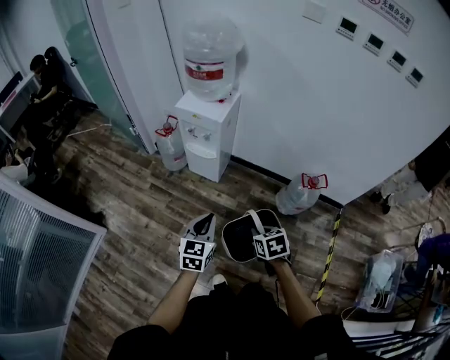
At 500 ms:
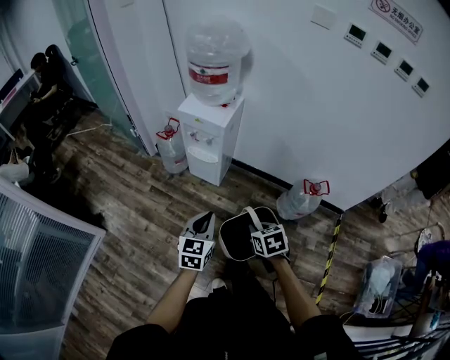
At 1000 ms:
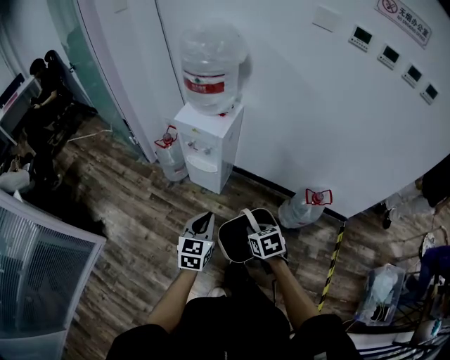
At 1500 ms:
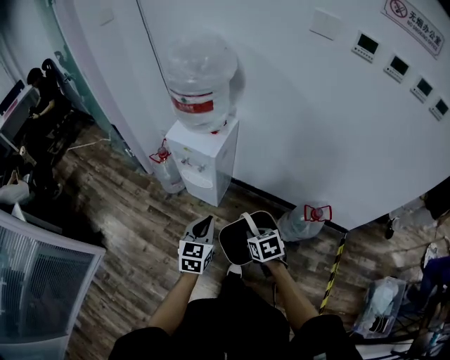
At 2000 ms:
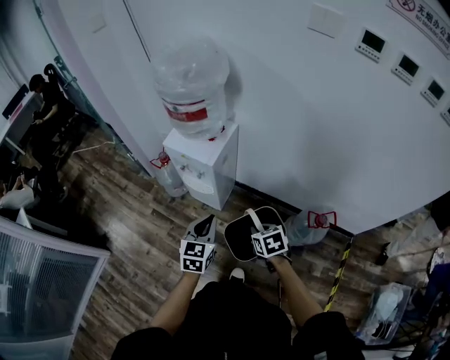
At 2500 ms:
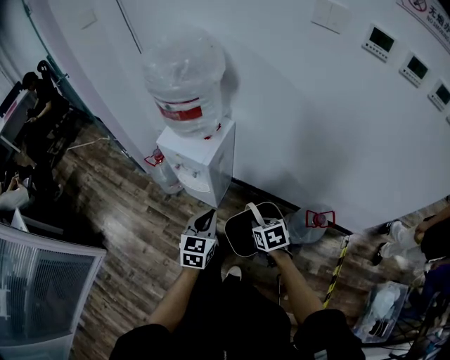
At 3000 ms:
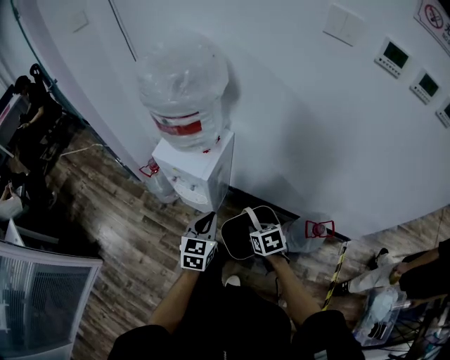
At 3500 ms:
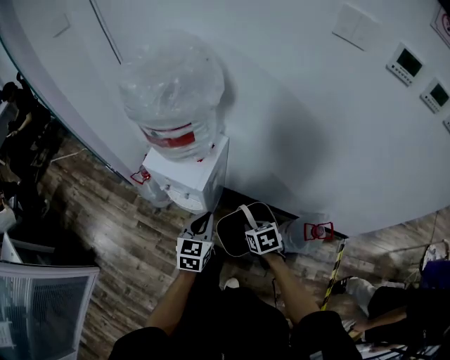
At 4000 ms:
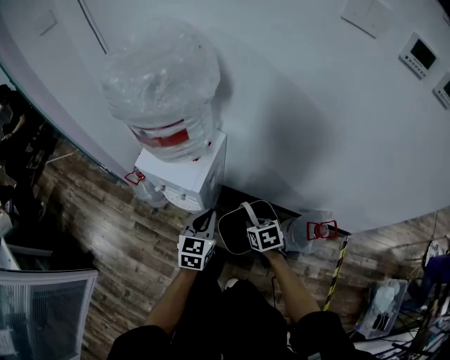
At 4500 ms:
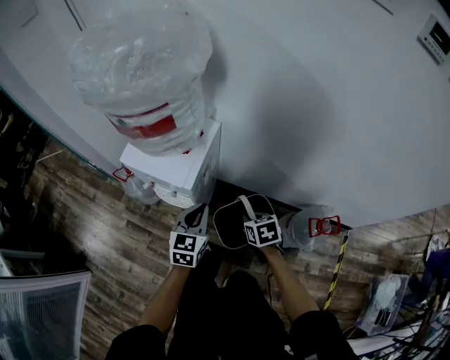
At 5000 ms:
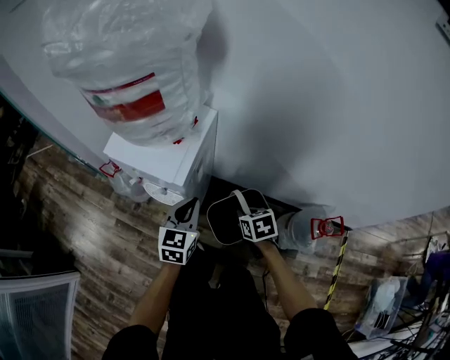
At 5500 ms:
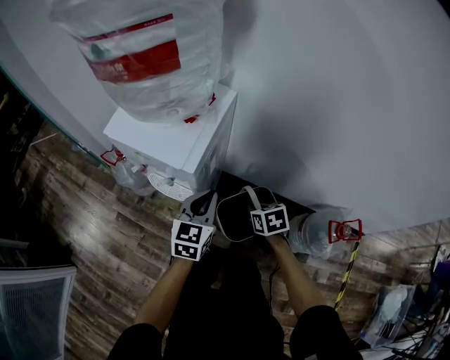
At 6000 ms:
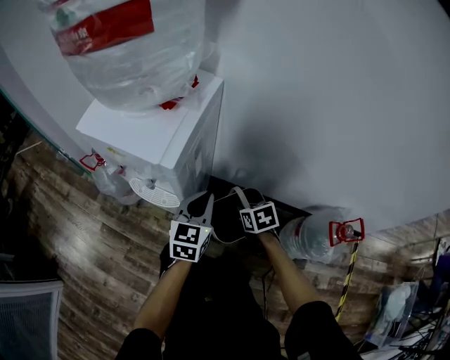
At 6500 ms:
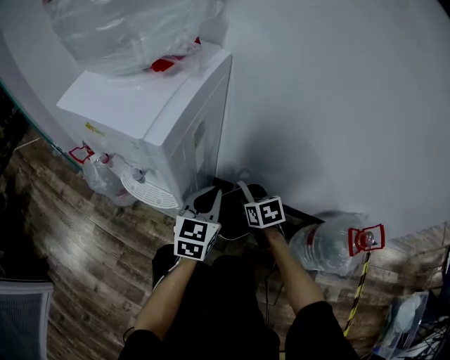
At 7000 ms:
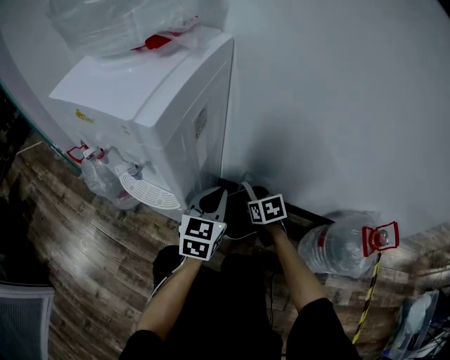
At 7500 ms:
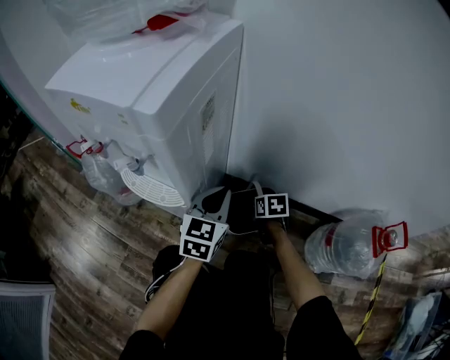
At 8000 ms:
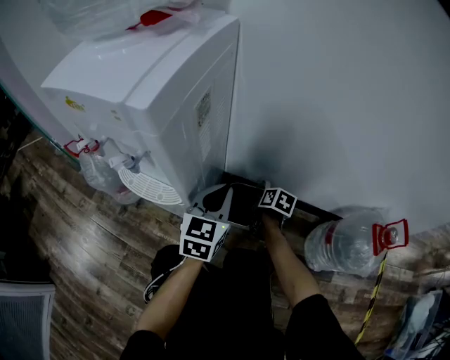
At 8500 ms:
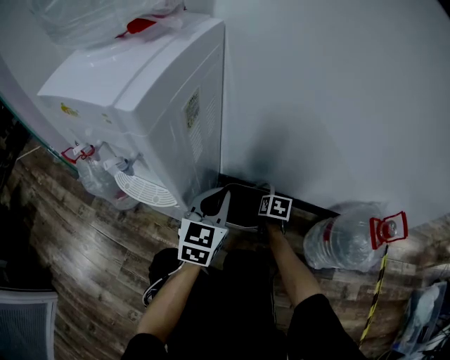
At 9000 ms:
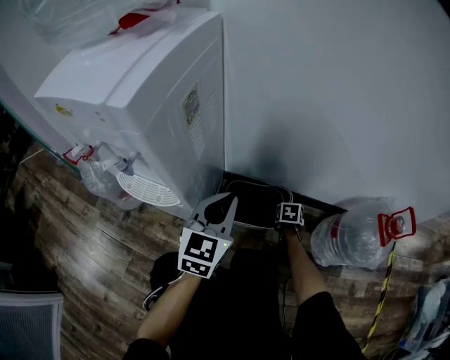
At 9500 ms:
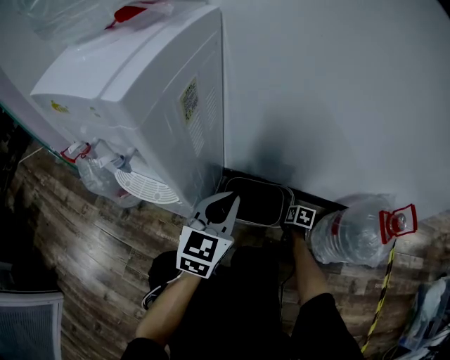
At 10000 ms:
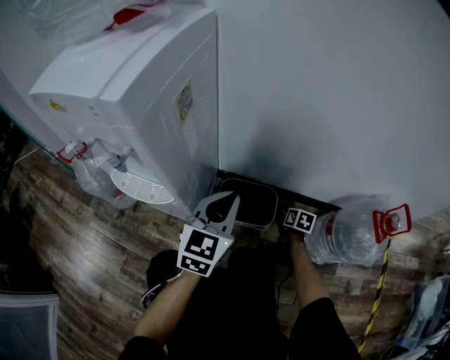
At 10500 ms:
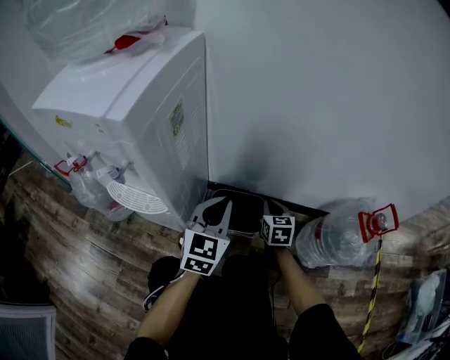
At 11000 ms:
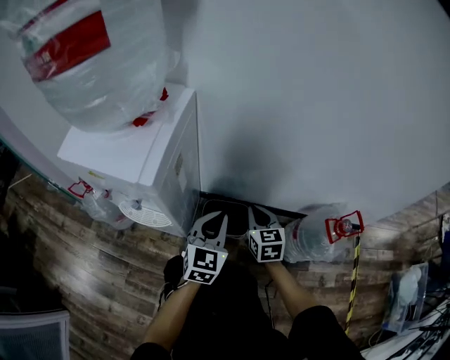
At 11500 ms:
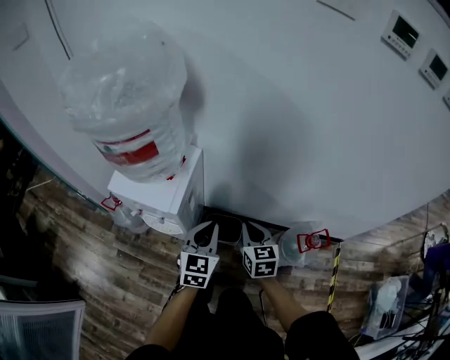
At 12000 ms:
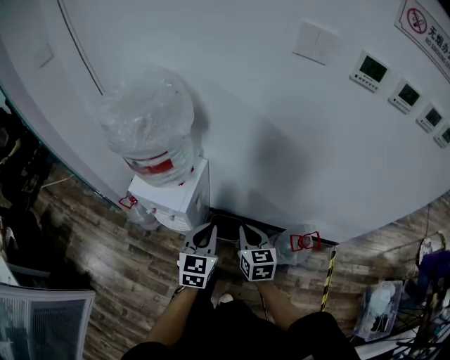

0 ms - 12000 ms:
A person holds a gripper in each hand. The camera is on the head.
0 ms - 2000 ms: The grippers both shift forward by approximately 25 cm.
2000 ms - 4000 ms: Both grippers travel together forward and downward, approximately 20 cm.
4000 ms - 6000 ms: The two grippers go approximately 25 cm downward.
6000 ms - 8000 ms: The right gripper heads downward, covering some 20 cm, and rotates around the line of its fingers by roughly 40 degrees, clockwise from behind. The left gripper moves downward, some 15 cm.
8000 ms - 10000 ms: The left gripper changes place by roughly 5 cm, while the right gripper shifts roughly 15 cm to the right and downward, and opens.
10000 ms - 12000 ms: The left gripper moves upward, about 50 cm; the right gripper travels upward by approximately 70 cm, rotates about 40 degrees, and closes.

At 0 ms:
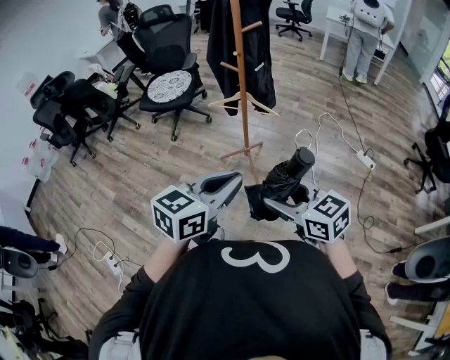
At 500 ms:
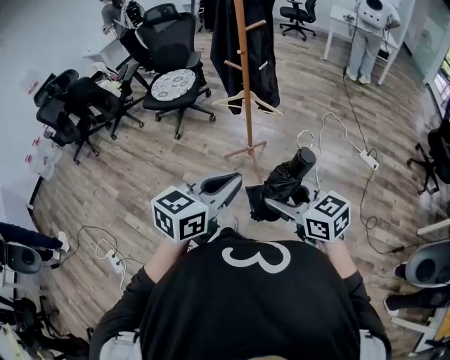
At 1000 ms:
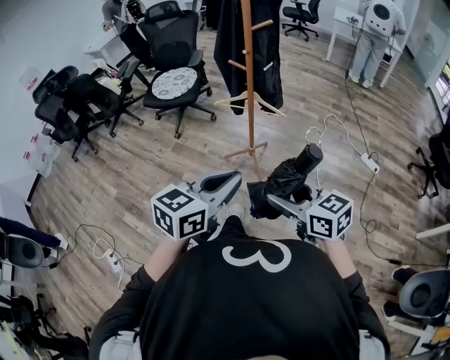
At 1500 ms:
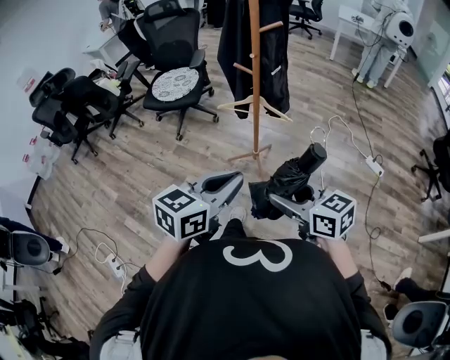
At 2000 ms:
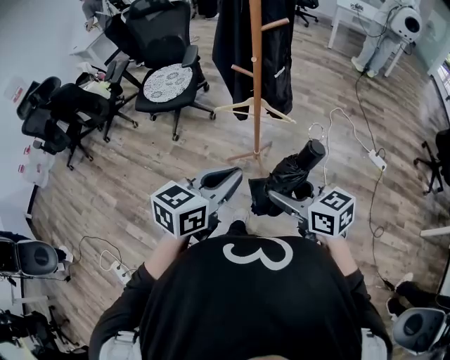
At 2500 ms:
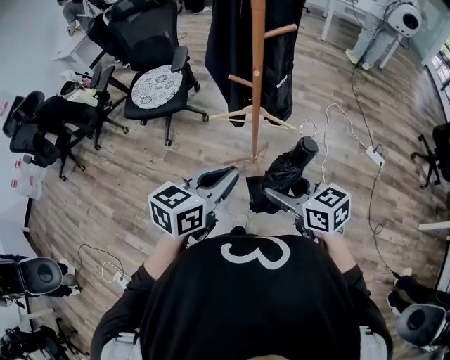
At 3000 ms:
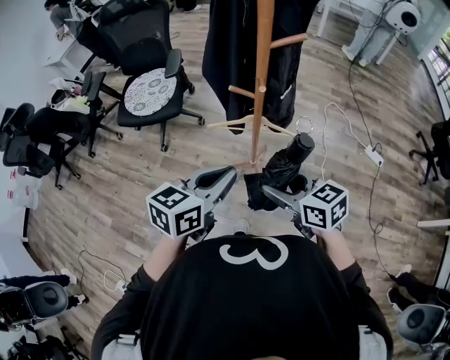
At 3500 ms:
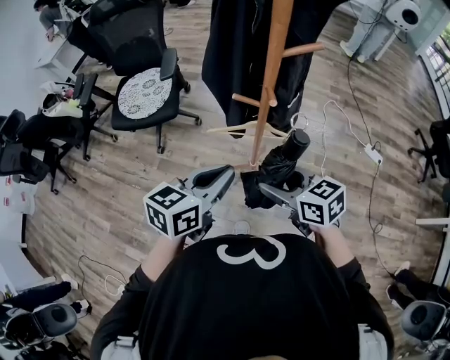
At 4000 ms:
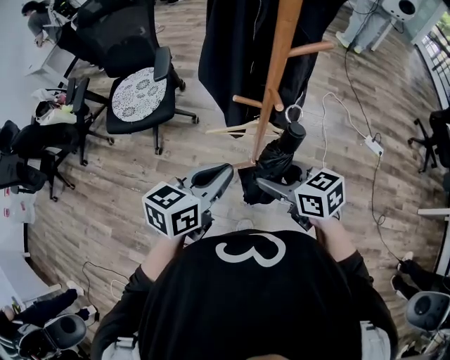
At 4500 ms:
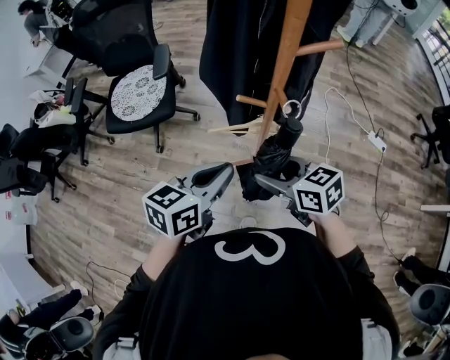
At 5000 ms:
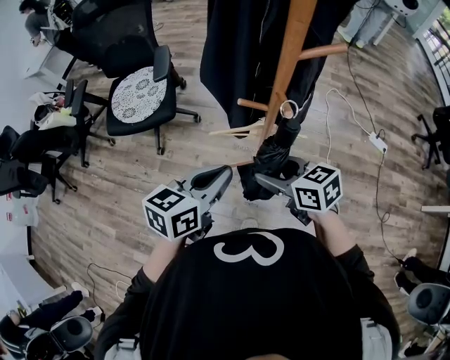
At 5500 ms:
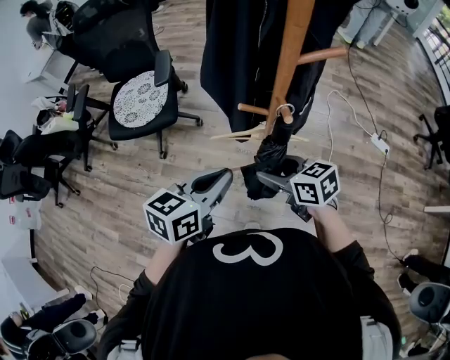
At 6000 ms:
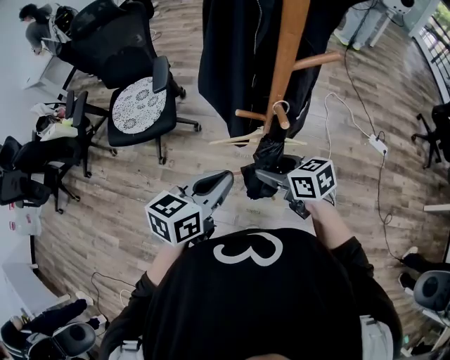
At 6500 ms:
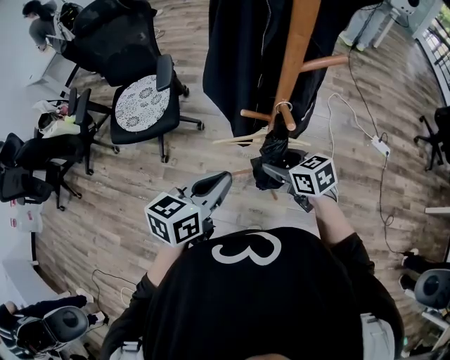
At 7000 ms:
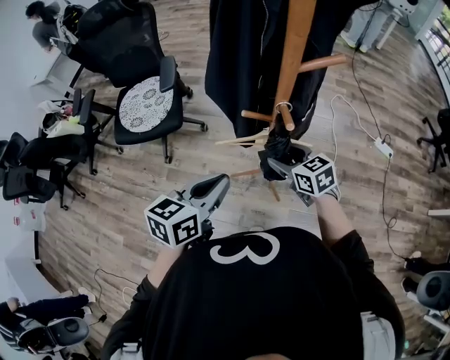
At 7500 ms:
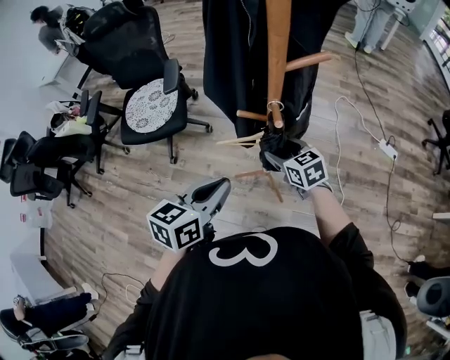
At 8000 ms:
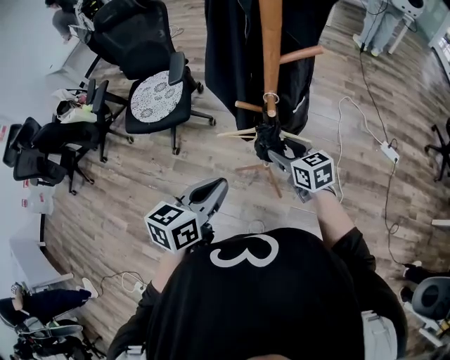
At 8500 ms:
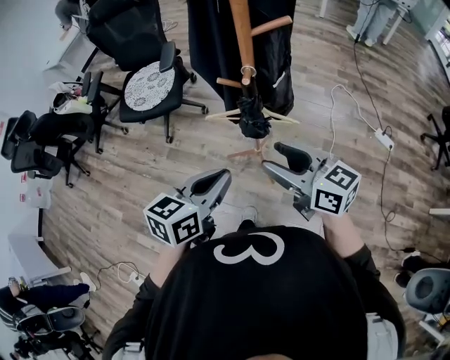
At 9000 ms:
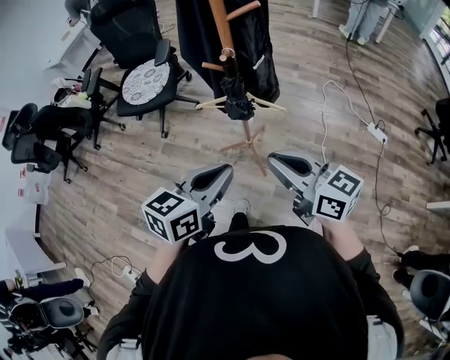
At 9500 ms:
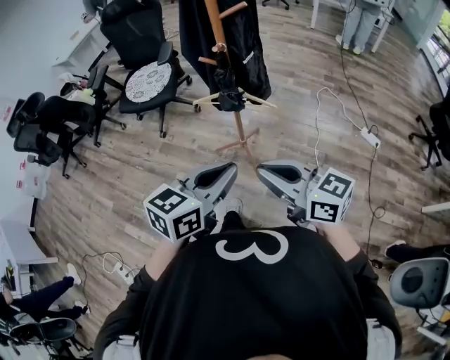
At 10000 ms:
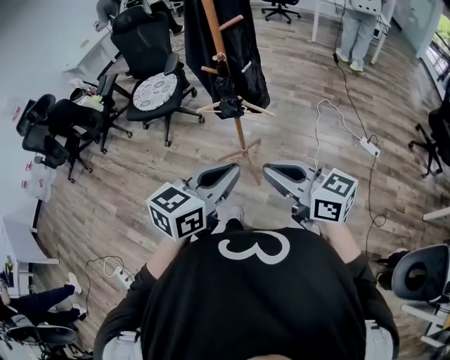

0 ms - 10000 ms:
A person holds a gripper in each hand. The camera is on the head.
0 ms - 2000 ms: The two grippers go approximately 20 cm forward.
2000 ms - 4000 ms: Both grippers move forward, some 25 cm.
4000 ms - 6000 ms: The right gripper shifts approximately 10 cm forward and downward.
6000 ms - 8000 ms: The right gripper heads to the right, covering some 5 cm. The left gripper goes approximately 5 cm backward.
8000 ms - 10000 ms: The left gripper moves backward and to the right, approximately 35 cm. The right gripper travels backward and upward by roughly 40 cm, changes its angle by some 30 degrees, and closes.

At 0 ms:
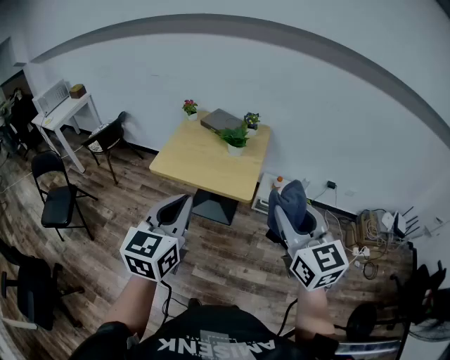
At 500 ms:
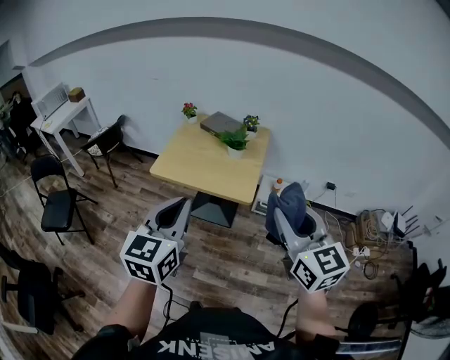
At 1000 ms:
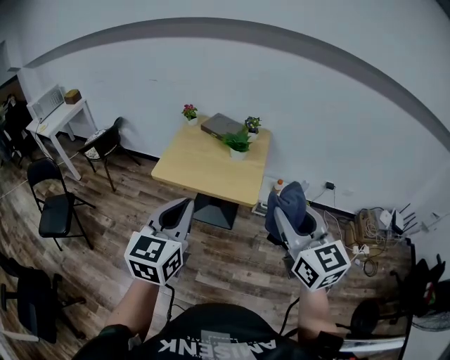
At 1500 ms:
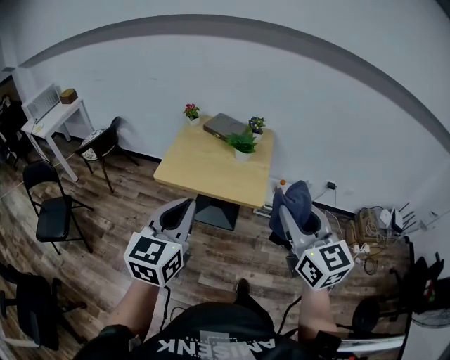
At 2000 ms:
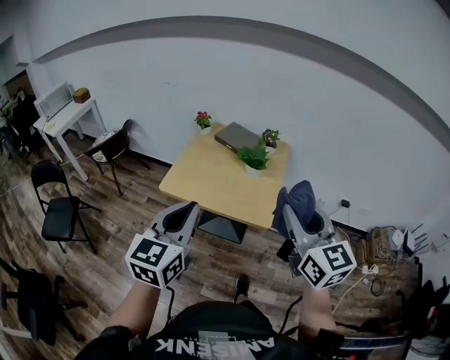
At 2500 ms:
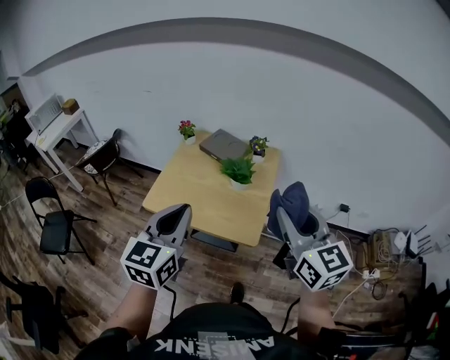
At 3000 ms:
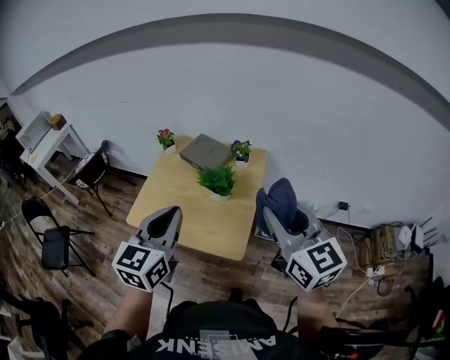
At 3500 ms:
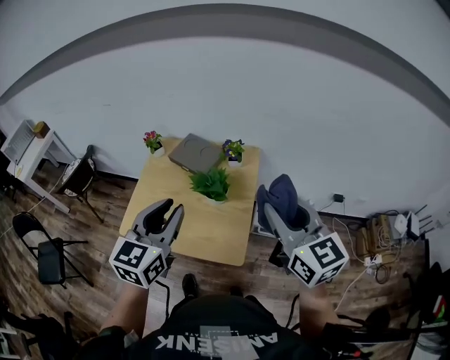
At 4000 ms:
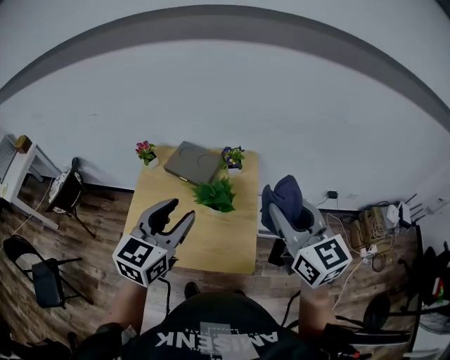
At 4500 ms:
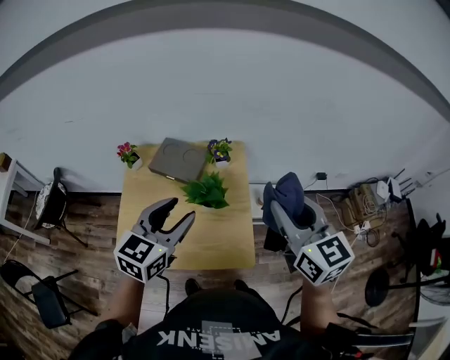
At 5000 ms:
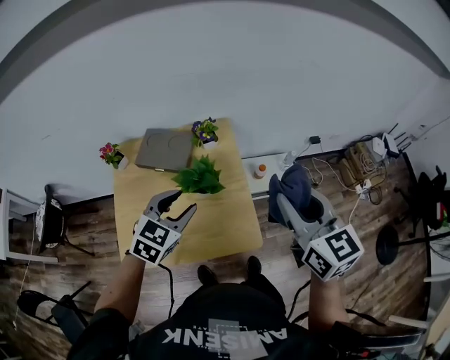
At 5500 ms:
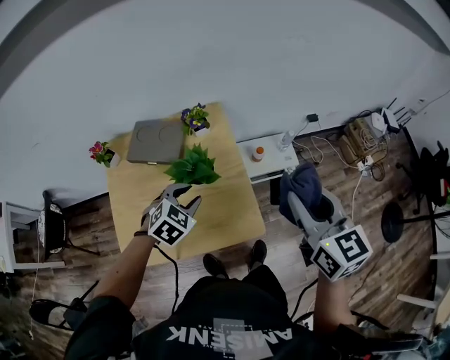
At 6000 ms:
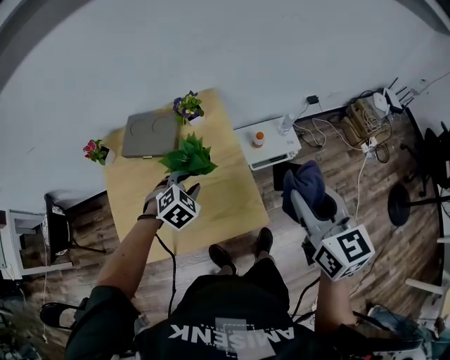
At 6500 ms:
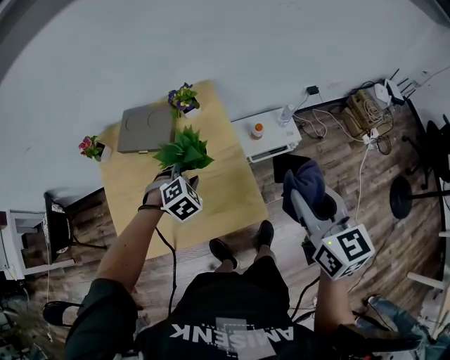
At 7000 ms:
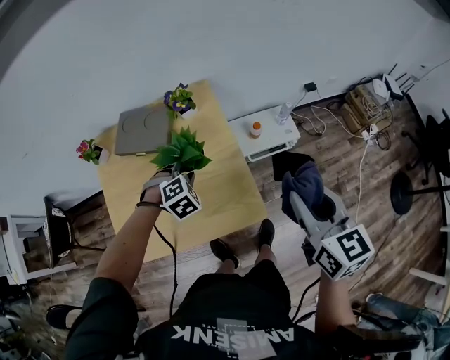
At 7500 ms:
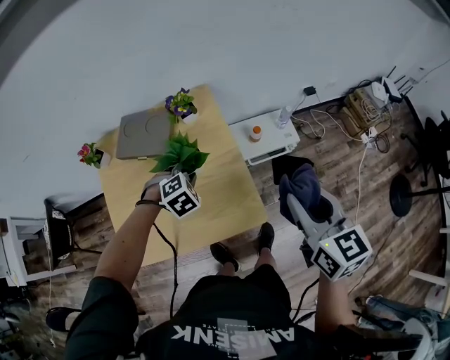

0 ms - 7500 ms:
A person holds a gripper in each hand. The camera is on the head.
0 ms - 2000 ms: Both grippers travel together forward and to the left, approximately 15 cm.
2000 ms - 4000 ms: The two grippers go some 30 cm forward. The left gripper swivels roughly 20 degrees, and opens up.
4000 ms - 5500 ms: The right gripper goes roughly 10 cm downward and to the right, and rotates roughly 30 degrees. Meanwhile the left gripper is displaced downward by about 20 cm, and tilts its fingers some 40 degrees downward.
5500 ms - 7500 ms: Both grippers travel together downward, about 5 cm. The left gripper swivels some 30 degrees, and closes up.
